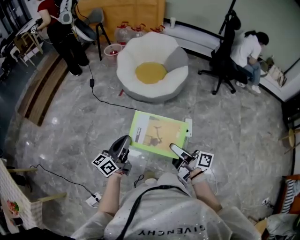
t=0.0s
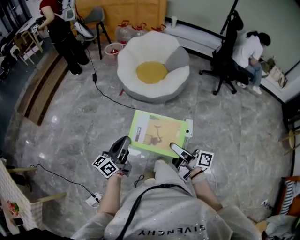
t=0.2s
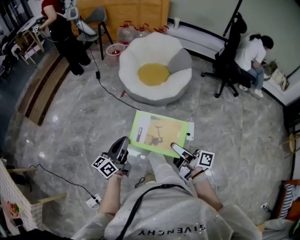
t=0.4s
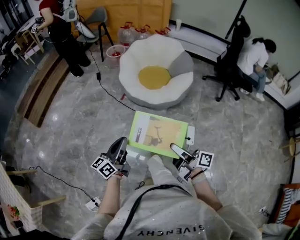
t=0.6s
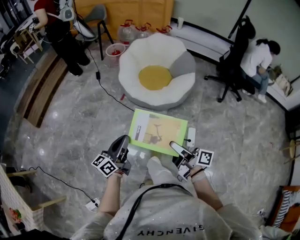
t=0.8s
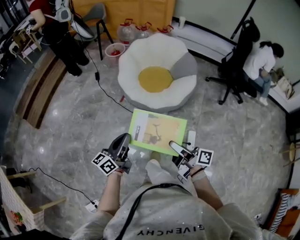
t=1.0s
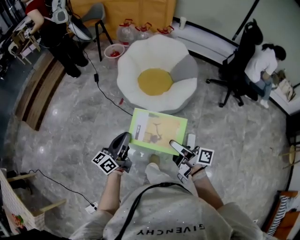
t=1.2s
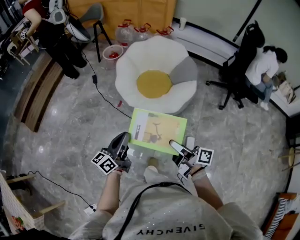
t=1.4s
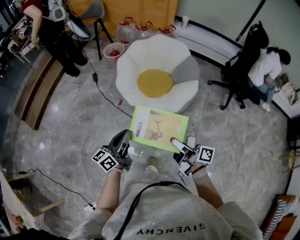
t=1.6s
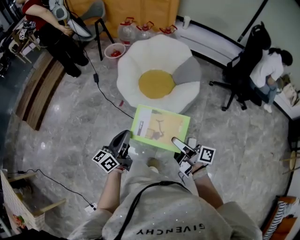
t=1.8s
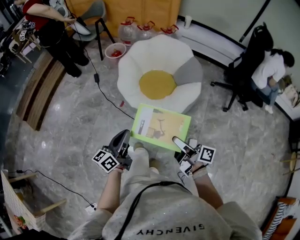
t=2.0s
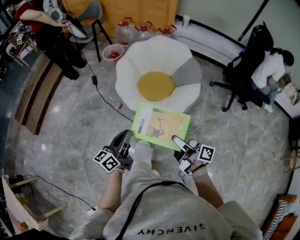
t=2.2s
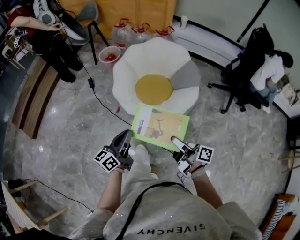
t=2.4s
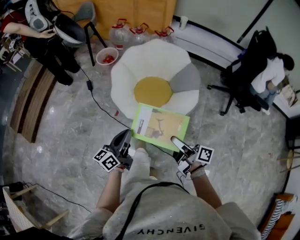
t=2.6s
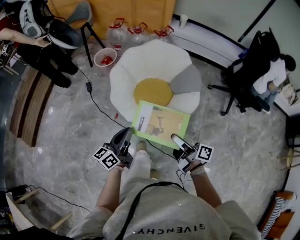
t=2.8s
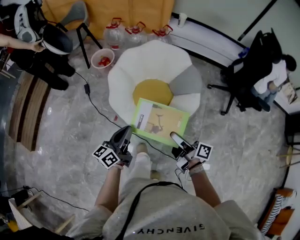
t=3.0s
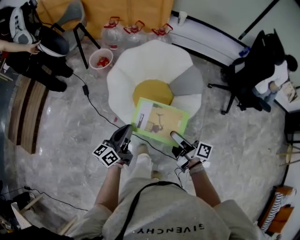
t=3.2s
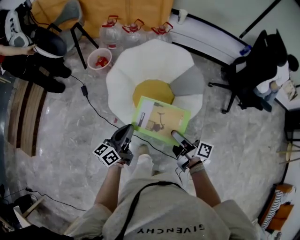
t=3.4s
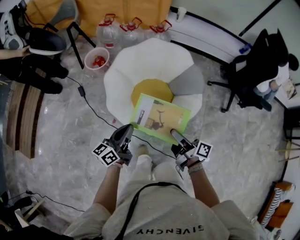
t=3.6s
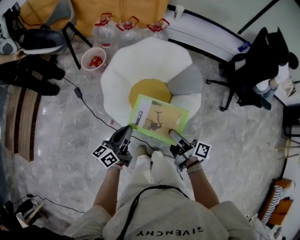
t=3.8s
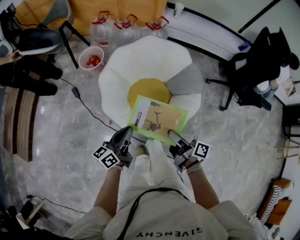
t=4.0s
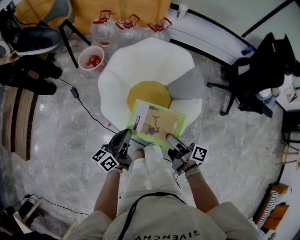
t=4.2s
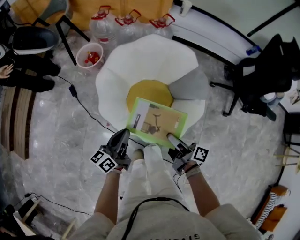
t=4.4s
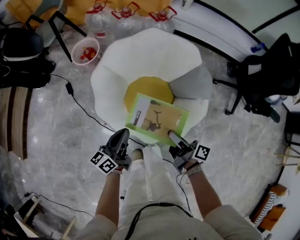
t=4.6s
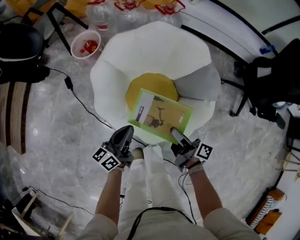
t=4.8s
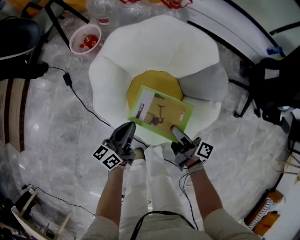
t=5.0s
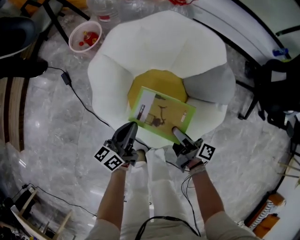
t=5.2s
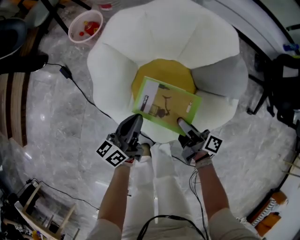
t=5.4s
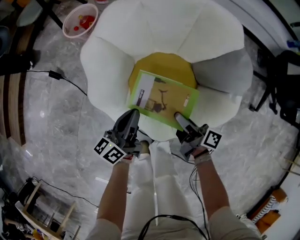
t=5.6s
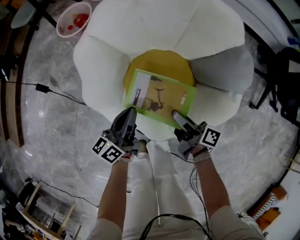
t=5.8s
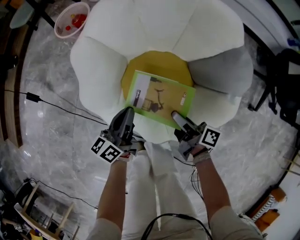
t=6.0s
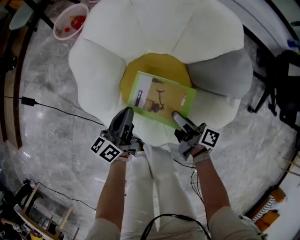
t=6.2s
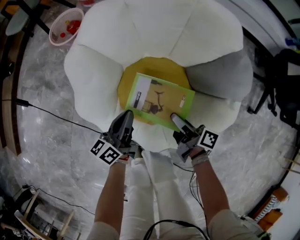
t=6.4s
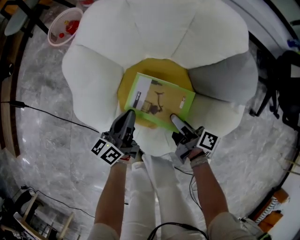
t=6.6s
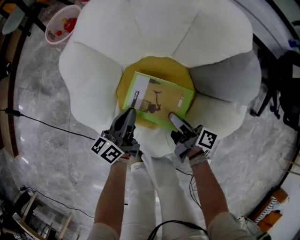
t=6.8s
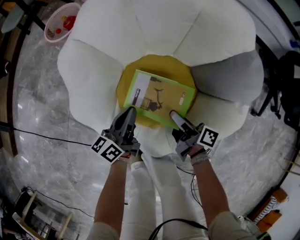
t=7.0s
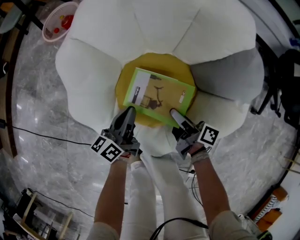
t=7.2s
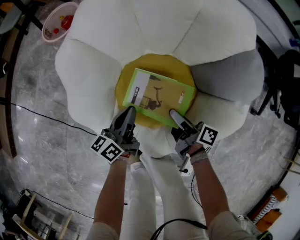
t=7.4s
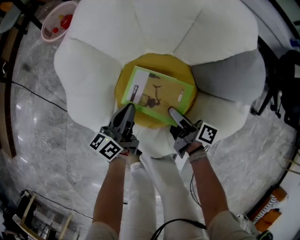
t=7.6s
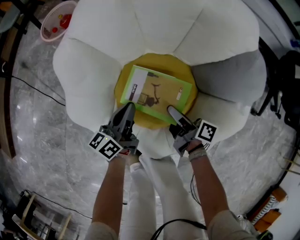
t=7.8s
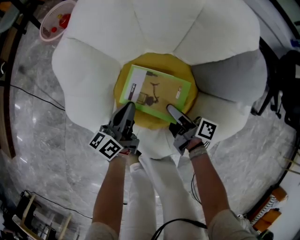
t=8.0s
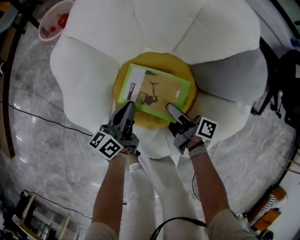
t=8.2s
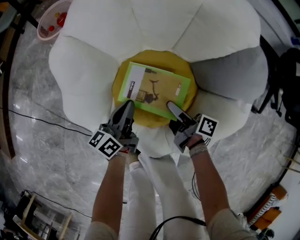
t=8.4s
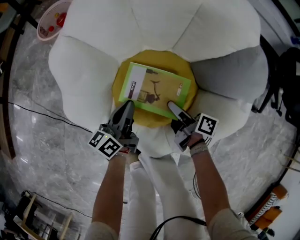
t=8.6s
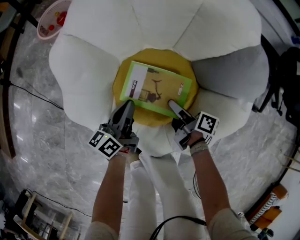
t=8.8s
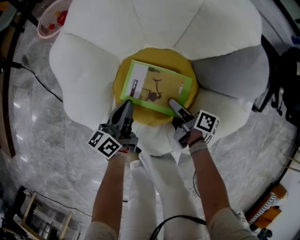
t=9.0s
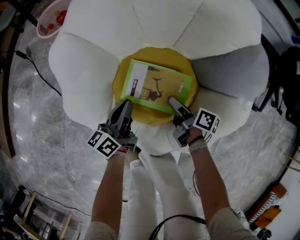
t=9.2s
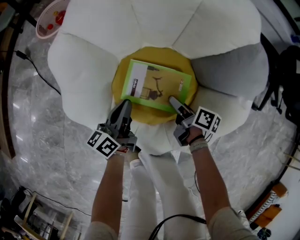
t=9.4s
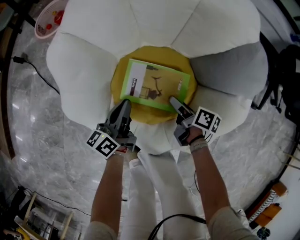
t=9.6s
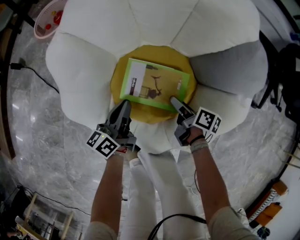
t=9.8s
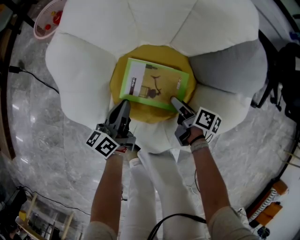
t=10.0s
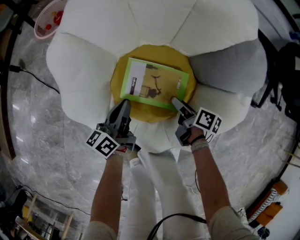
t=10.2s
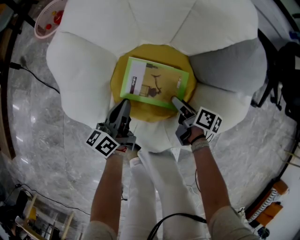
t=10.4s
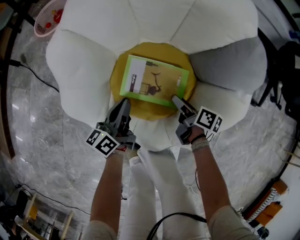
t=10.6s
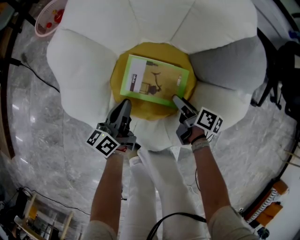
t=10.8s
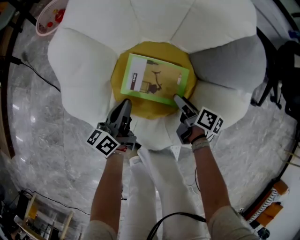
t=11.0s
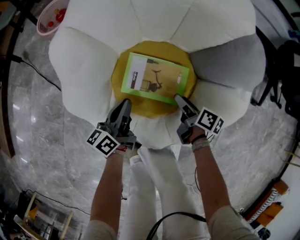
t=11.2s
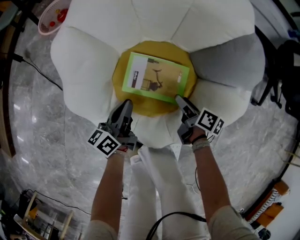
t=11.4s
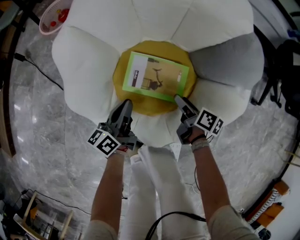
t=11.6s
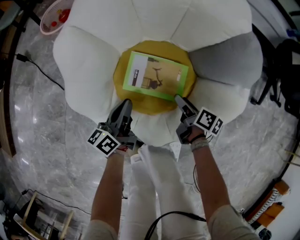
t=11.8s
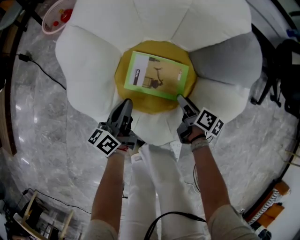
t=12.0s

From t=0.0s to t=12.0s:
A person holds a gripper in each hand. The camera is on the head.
From t=0.0s to t=1.6s: Both grippers travel together forward, some 25 cm.
From t=1.6s to t=3.0s: Both grippers move forward, about 35 cm.
From t=3.0s to t=4.4s: Both grippers travel together forward and downward, about 15 cm.
From t=4.4s to t=6.0s: The grippers both shift downward and forward by approximately 25 cm.
From t=6.0s to t=7.6s: Both grippers move downward, some 10 cm.
From t=7.6s to t=9.0s: The right gripper travels downward by approximately 5 cm.
From t=9.0s to t=10.4s: The right gripper opens its fingers.
From t=10.4s to t=12.0s: The grippers stay close to where they were, moving slightly.

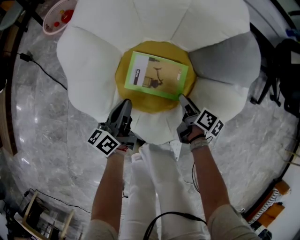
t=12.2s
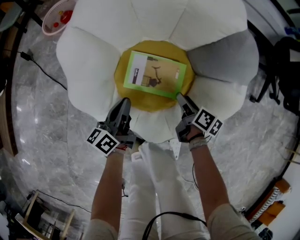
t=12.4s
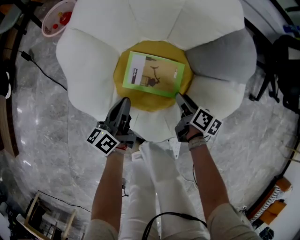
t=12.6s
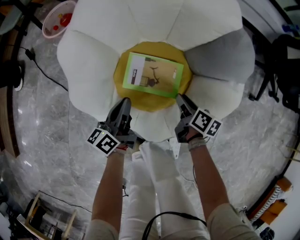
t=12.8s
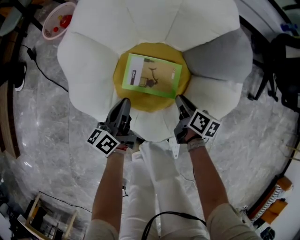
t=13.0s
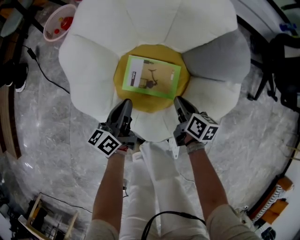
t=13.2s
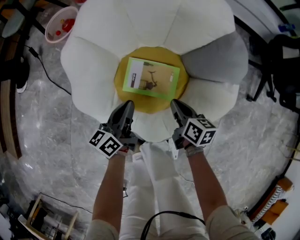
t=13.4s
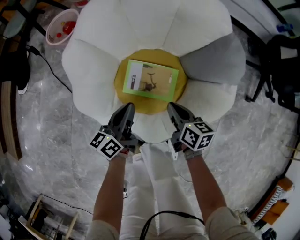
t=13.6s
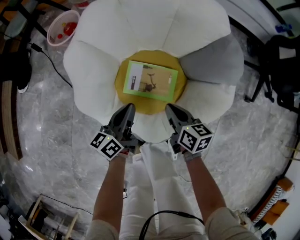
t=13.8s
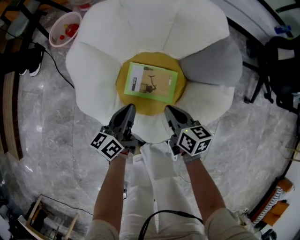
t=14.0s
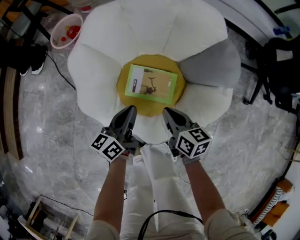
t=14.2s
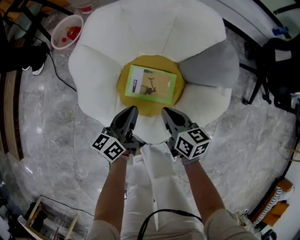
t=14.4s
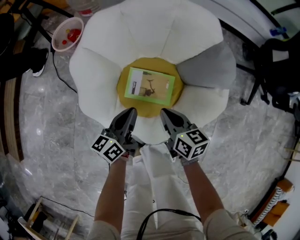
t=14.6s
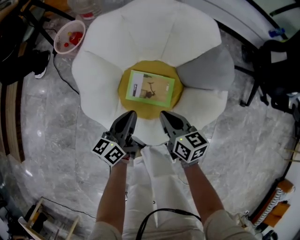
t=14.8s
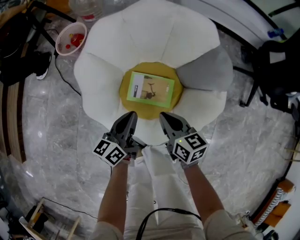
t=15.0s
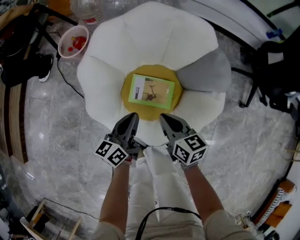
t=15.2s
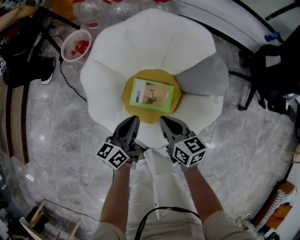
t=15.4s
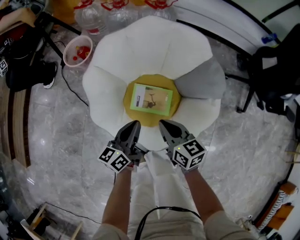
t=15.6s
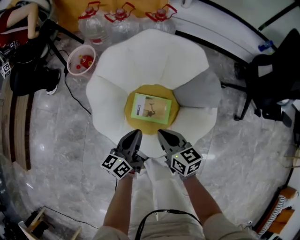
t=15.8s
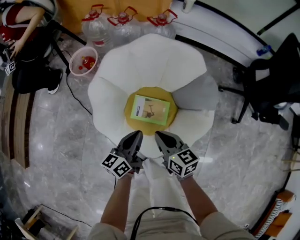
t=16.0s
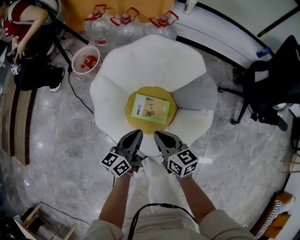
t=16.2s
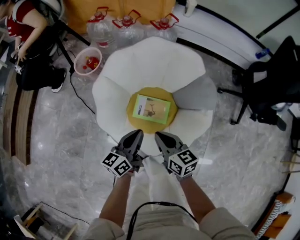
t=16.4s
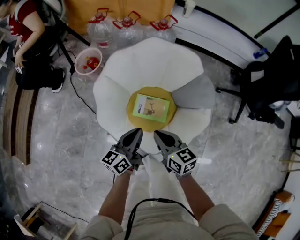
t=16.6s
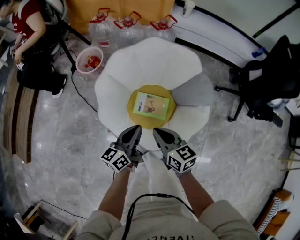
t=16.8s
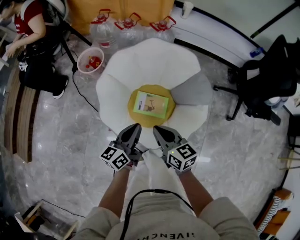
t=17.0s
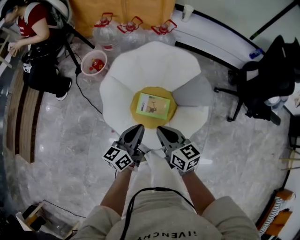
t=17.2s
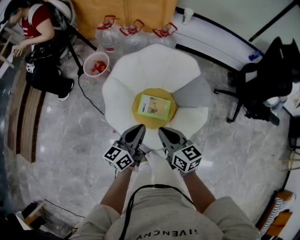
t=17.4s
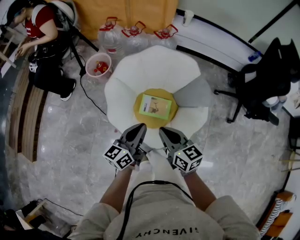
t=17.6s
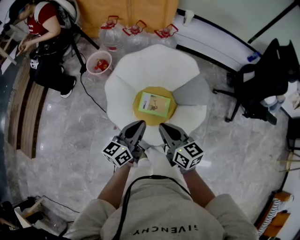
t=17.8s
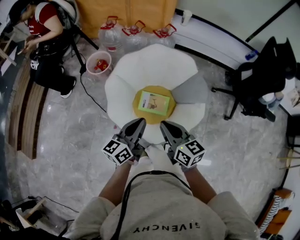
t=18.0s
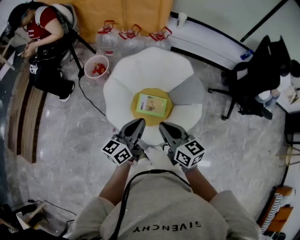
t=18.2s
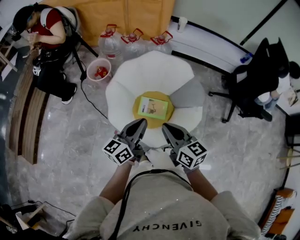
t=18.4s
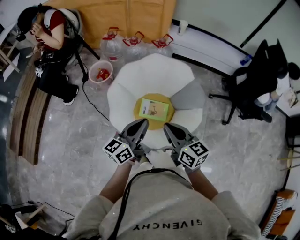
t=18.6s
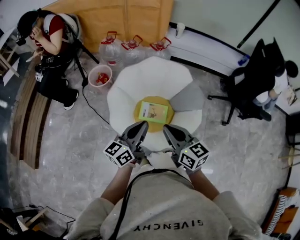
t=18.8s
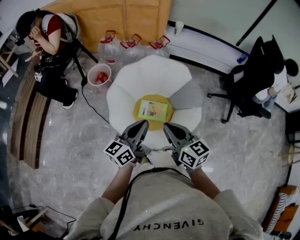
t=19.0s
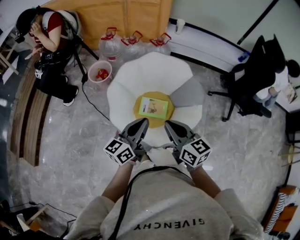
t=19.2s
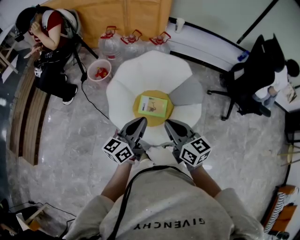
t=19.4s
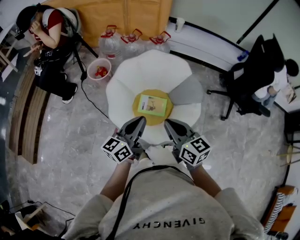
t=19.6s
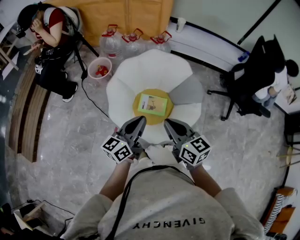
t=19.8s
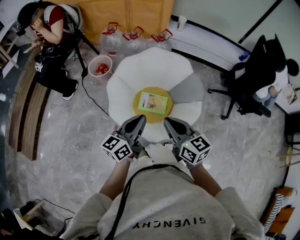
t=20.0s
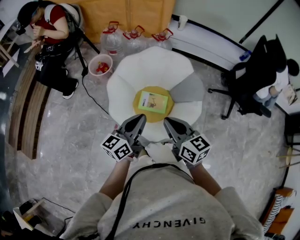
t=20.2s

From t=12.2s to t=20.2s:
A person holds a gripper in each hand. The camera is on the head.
From t=12.2s to t=13.8s: The right gripper goes approximately 15 cm upward and to the left, changes its angle by about 30 degrees, and closes. Meanwhile the left gripper shifts some 10 cm upward.
From t=13.8s to t=15.4s: The two grippers go roughly 10 cm upward.
From t=15.4s to t=17.0s: Both grippers travel together upward, roughly 15 cm.
From t=17.0s to t=18.6s: The two grippers go roughly 15 cm upward.
From t=18.6s to t=20.2s: The grippers stay close to where they were, moving slightly.

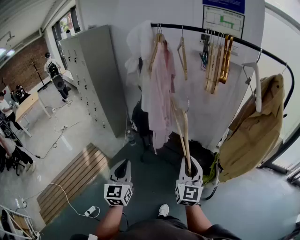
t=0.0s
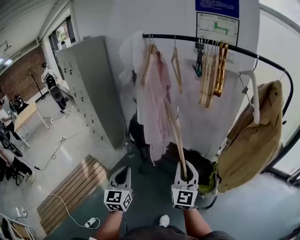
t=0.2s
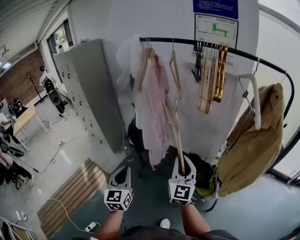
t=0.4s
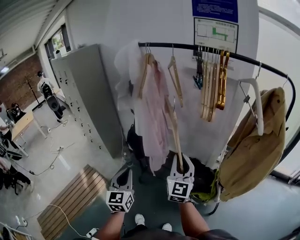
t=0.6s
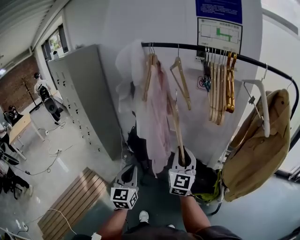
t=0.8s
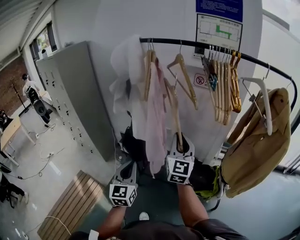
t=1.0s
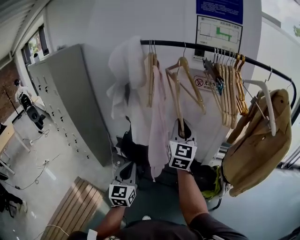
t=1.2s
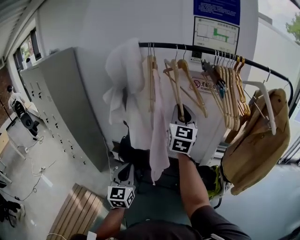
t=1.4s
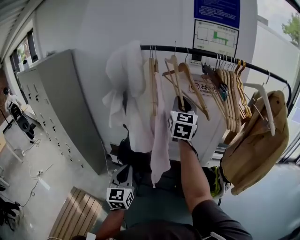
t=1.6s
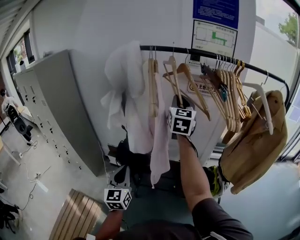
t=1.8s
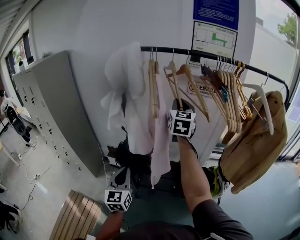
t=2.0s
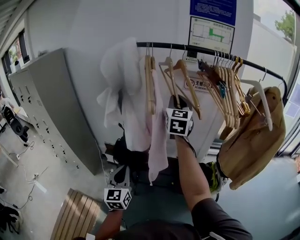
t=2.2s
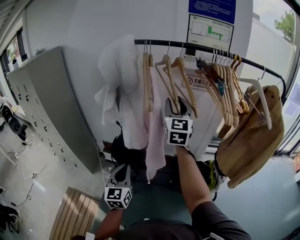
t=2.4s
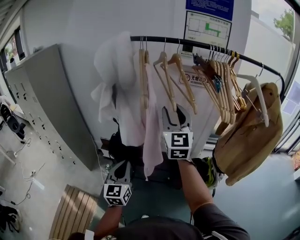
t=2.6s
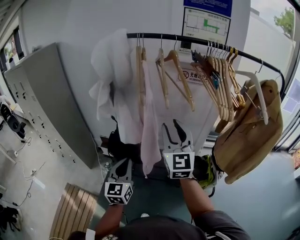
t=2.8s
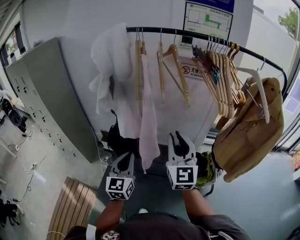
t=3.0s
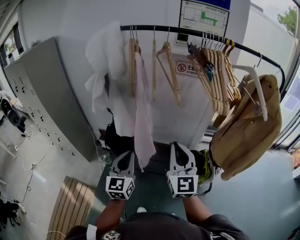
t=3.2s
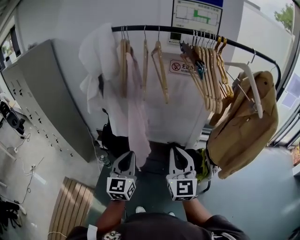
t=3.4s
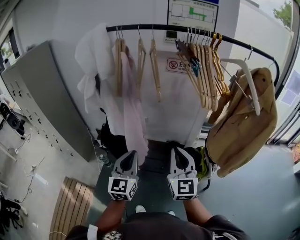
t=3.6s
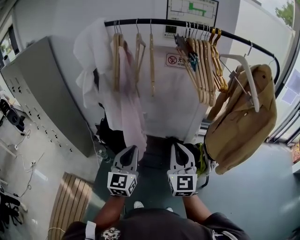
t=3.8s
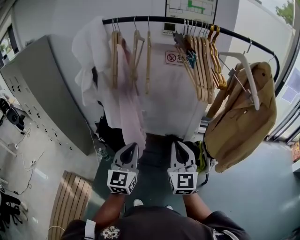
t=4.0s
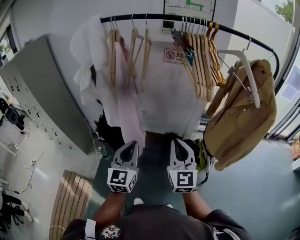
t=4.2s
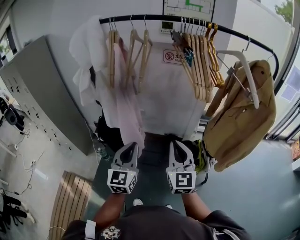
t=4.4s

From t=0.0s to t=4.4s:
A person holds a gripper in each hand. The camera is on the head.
From t=0.0s to t=1.4s: The right gripper heads forward and upward, covering about 40 cm. Meanwhile the left gripper shifts some 25 cm forward.
From t=1.4s to t=3.0s: The right gripper moves backward and downward, some 15 cm.
From t=3.0s to t=4.4s: The left gripper heads to the right, covering roughly 10 cm. The right gripper travels to the right and downward by roughly 15 cm.
